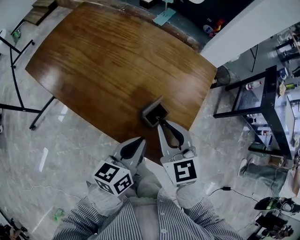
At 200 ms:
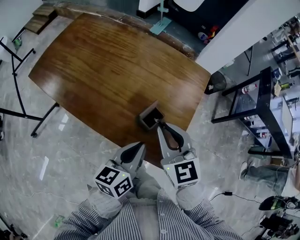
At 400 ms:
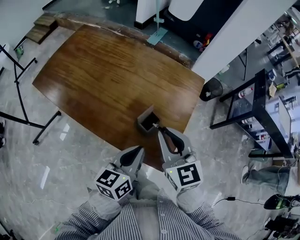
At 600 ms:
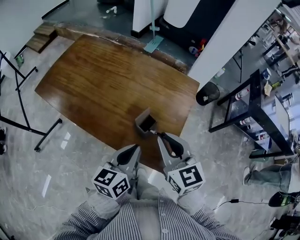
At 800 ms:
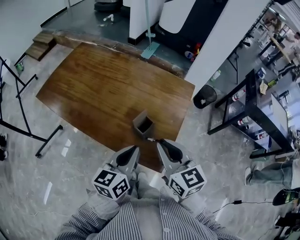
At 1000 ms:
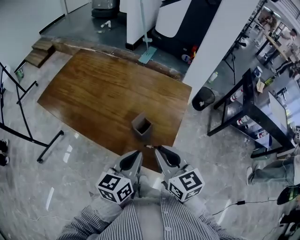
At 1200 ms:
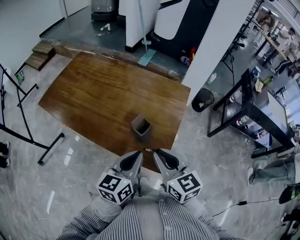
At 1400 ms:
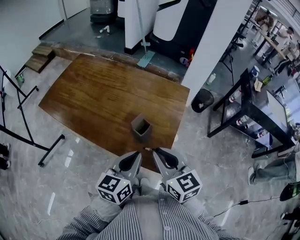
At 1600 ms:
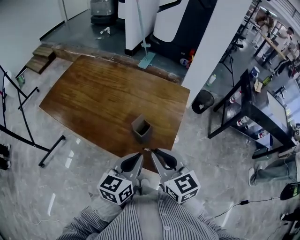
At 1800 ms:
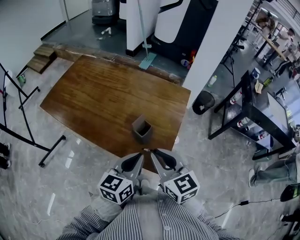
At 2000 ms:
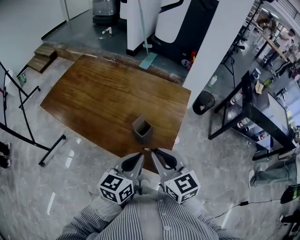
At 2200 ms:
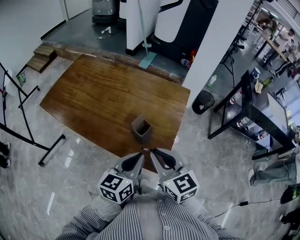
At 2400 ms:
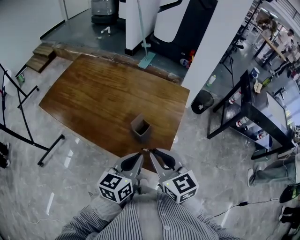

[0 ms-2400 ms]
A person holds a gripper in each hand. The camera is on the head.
0 ms to 1200 ms: The left gripper moves upward and backward, about 10 cm; the right gripper shifts approximately 15 cm backward and upward.
1200 ms to 2400 ms: Both grippers stay about where they are.

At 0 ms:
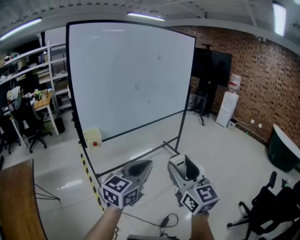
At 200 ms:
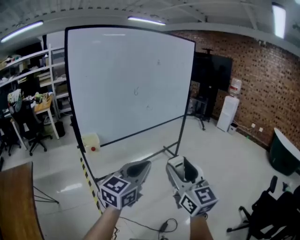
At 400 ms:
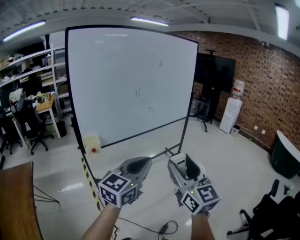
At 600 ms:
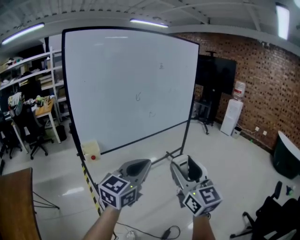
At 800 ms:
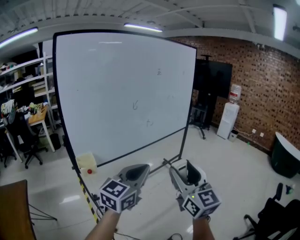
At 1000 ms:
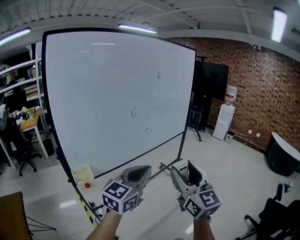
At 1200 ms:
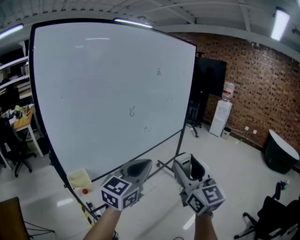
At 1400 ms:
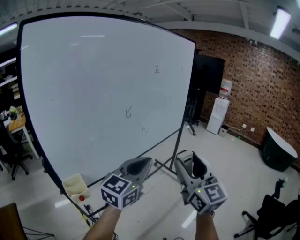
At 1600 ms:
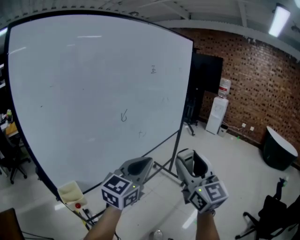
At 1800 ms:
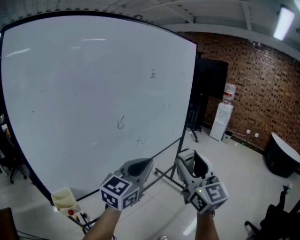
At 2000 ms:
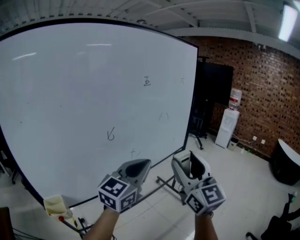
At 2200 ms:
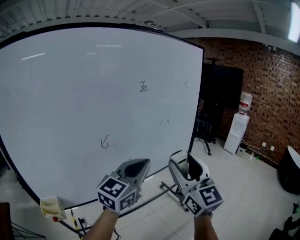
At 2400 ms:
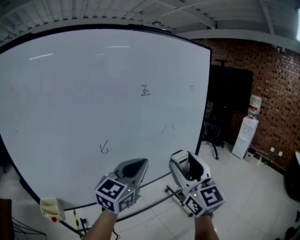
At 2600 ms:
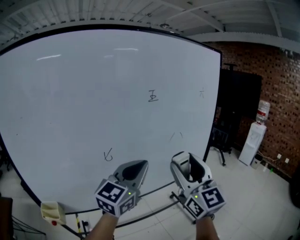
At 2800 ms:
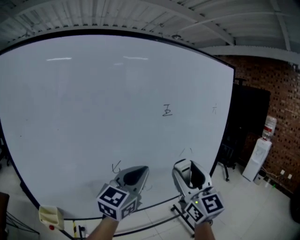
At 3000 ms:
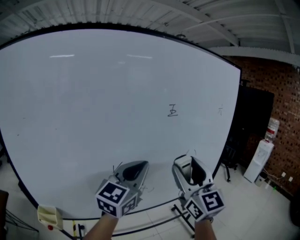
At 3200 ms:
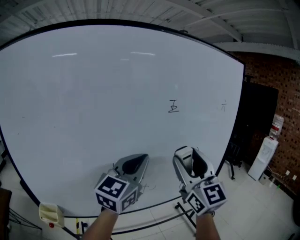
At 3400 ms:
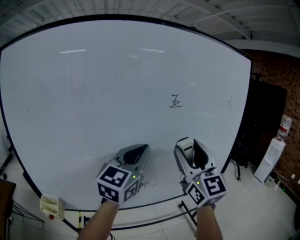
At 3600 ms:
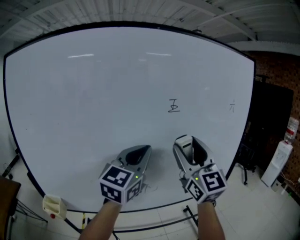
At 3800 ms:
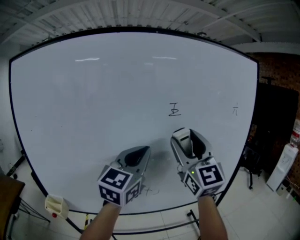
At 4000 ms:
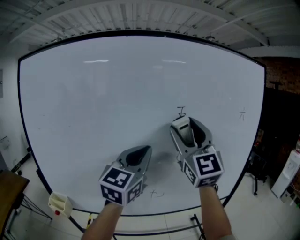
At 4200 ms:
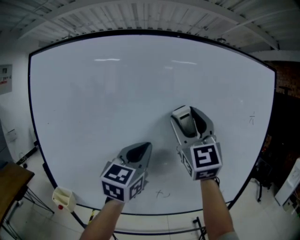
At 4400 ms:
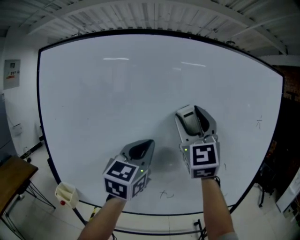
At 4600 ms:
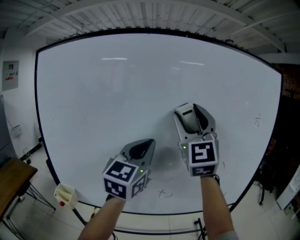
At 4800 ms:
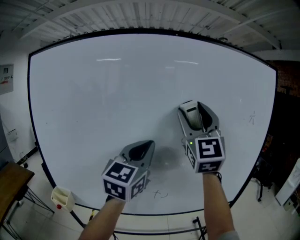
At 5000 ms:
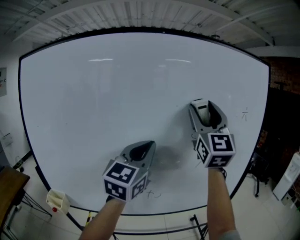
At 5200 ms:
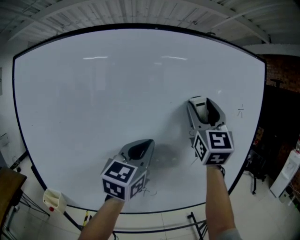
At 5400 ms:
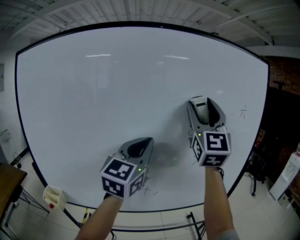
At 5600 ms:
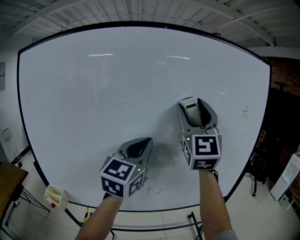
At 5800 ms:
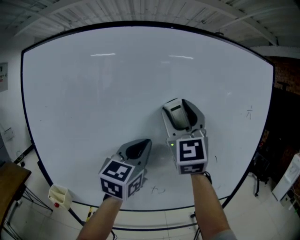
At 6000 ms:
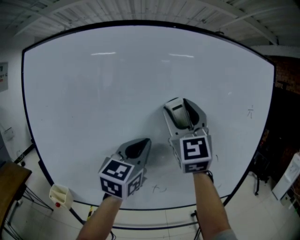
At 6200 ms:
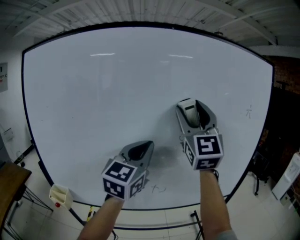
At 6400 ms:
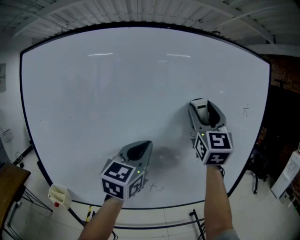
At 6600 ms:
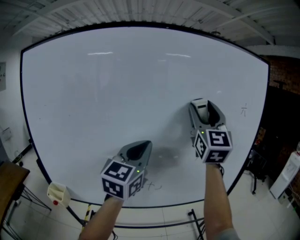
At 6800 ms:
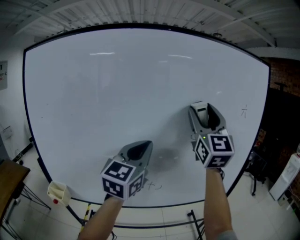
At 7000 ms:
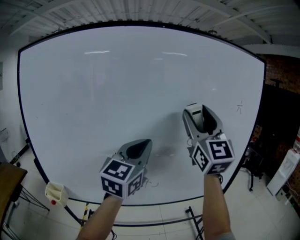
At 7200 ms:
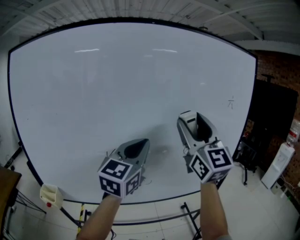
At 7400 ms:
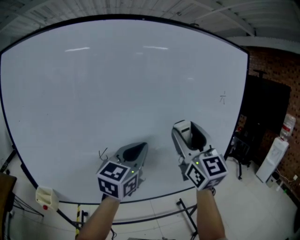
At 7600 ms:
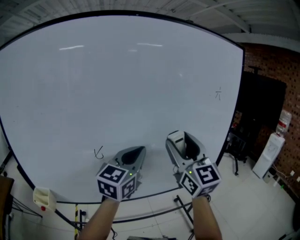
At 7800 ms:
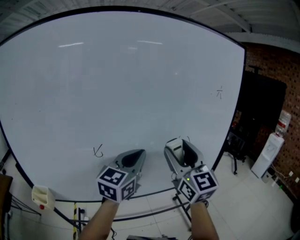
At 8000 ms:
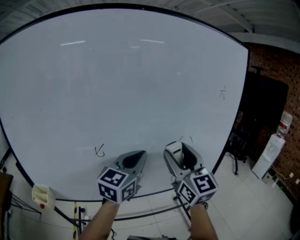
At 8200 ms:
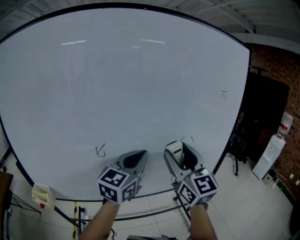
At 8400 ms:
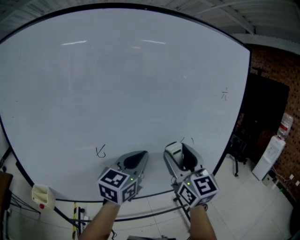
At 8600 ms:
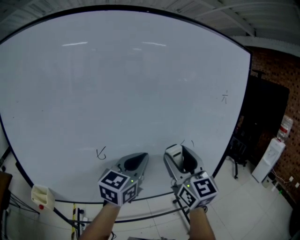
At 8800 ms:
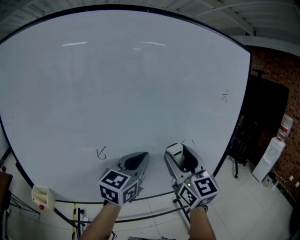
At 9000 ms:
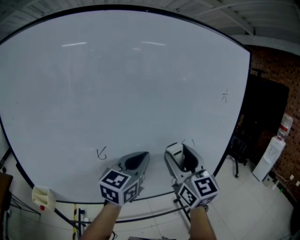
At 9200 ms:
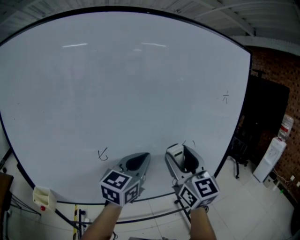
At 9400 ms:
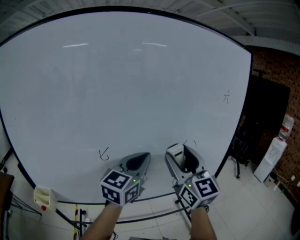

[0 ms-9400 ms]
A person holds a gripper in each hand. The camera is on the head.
0 ms to 1600 ms: Both grippers travel together forward, roughly 35 cm.
1600 ms to 3200 ms: The left gripper changes place by approximately 30 cm, and changes its angle by about 30 degrees. The right gripper moves some 30 cm, and rotates roughly 30 degrees.
3200 ms to 4800 ms: The right gripper heads upward and forward, covering approximately 15 cm. The left gripper goes approximately 5 cm upward, and swivels roughly 20 degrees.
4800 ms to 6200 ms: The right gripper swings left and right, about 15 cm each way, with 2 reversals.
6200 ms to 7800 ms: The right gripper goes roughly 20 cm downward and to the right, and changes its angle by about 20 degrees, while the left gripper travels downward and to the right by roughly 10 cm.
7800 ms to 9400 ms: The grippers move only a little.

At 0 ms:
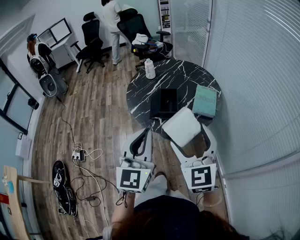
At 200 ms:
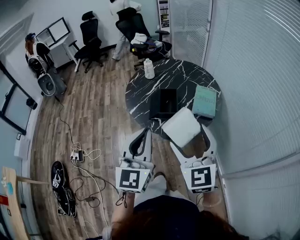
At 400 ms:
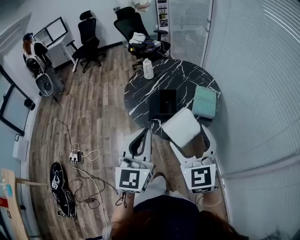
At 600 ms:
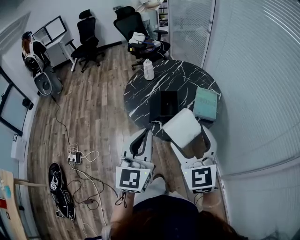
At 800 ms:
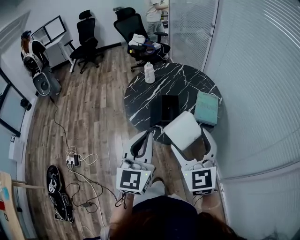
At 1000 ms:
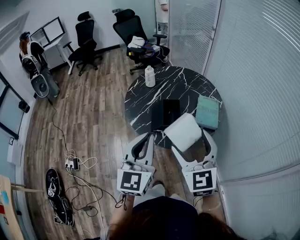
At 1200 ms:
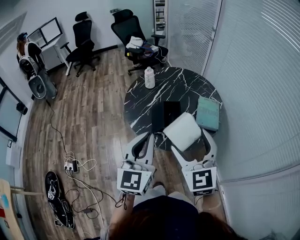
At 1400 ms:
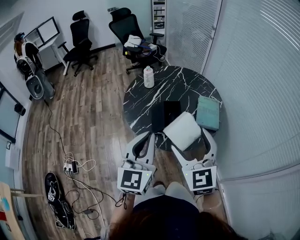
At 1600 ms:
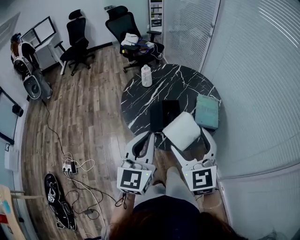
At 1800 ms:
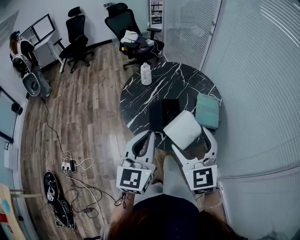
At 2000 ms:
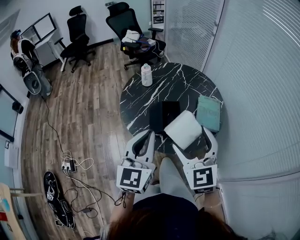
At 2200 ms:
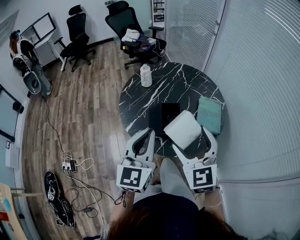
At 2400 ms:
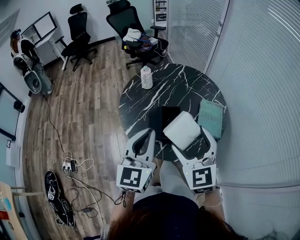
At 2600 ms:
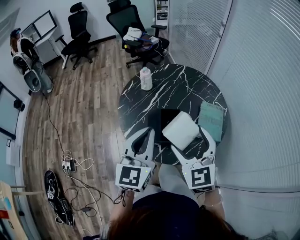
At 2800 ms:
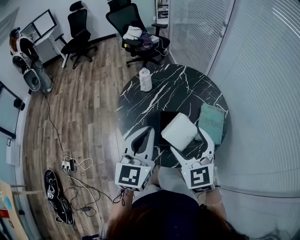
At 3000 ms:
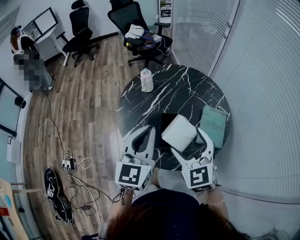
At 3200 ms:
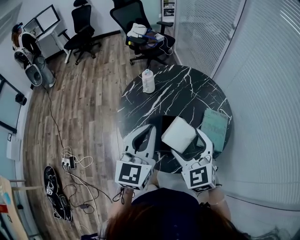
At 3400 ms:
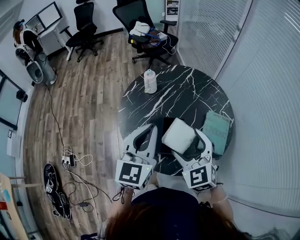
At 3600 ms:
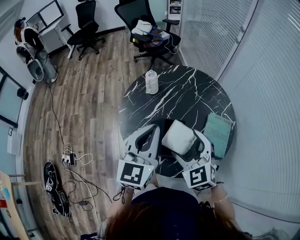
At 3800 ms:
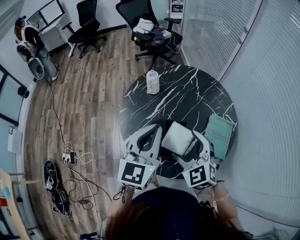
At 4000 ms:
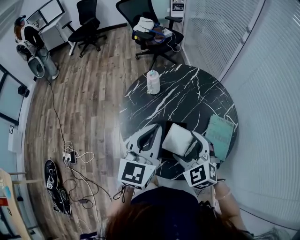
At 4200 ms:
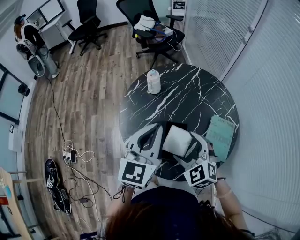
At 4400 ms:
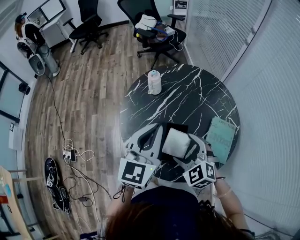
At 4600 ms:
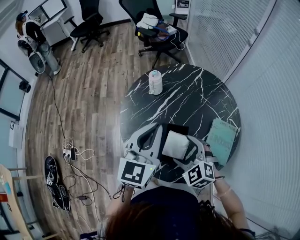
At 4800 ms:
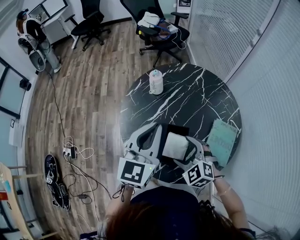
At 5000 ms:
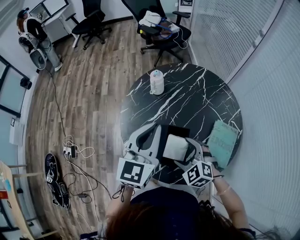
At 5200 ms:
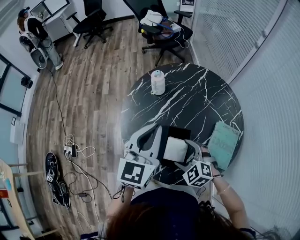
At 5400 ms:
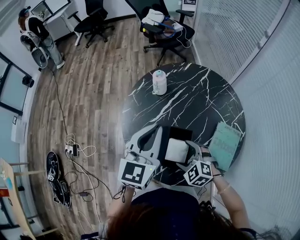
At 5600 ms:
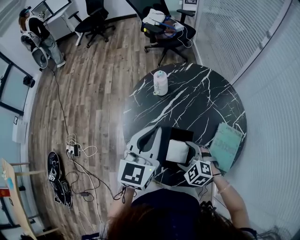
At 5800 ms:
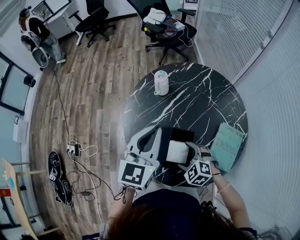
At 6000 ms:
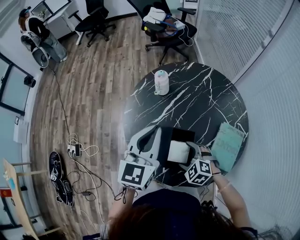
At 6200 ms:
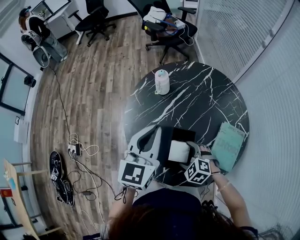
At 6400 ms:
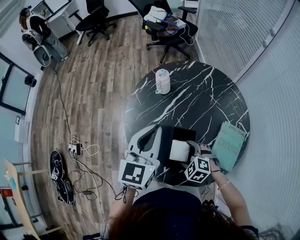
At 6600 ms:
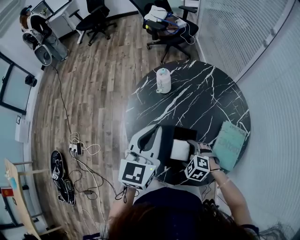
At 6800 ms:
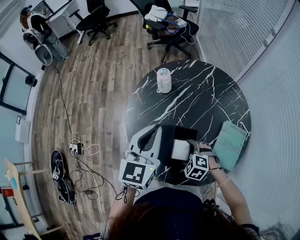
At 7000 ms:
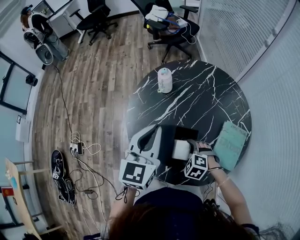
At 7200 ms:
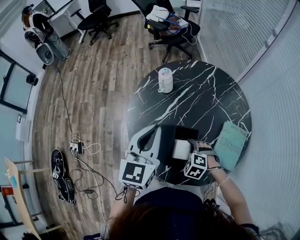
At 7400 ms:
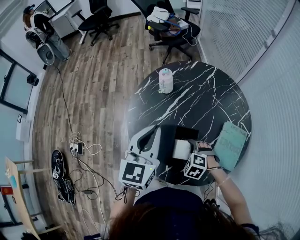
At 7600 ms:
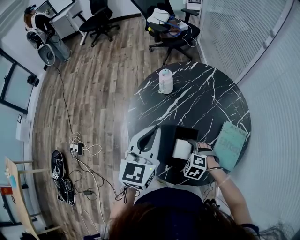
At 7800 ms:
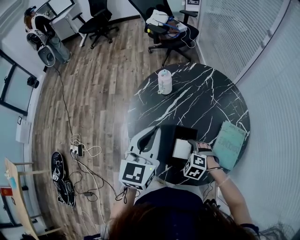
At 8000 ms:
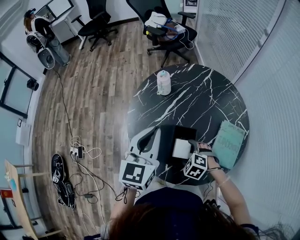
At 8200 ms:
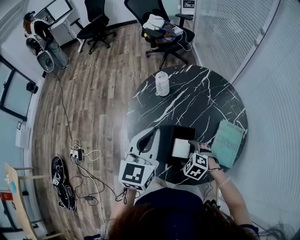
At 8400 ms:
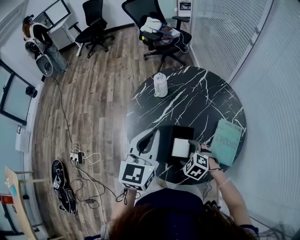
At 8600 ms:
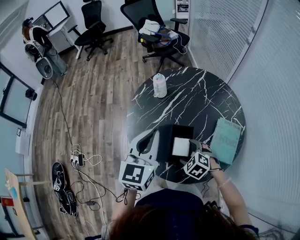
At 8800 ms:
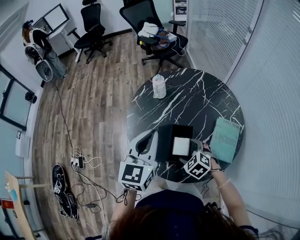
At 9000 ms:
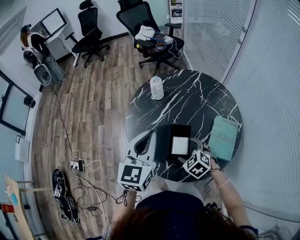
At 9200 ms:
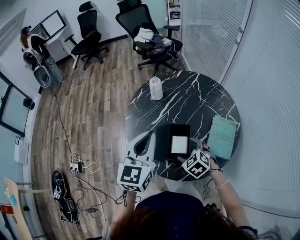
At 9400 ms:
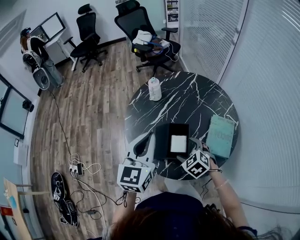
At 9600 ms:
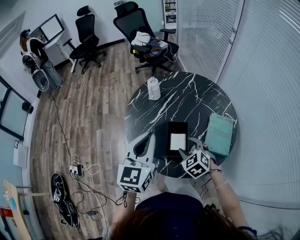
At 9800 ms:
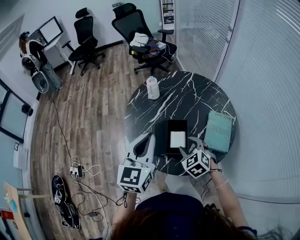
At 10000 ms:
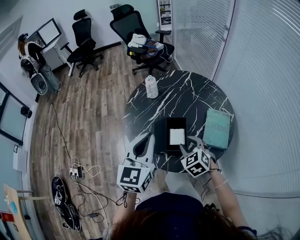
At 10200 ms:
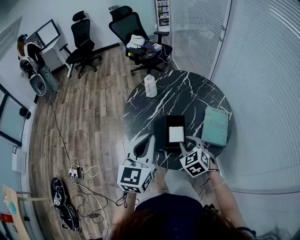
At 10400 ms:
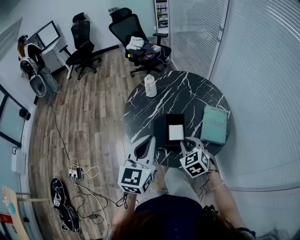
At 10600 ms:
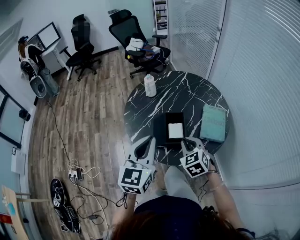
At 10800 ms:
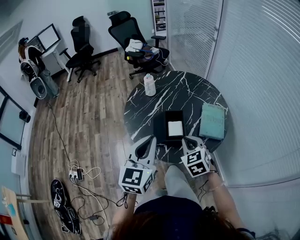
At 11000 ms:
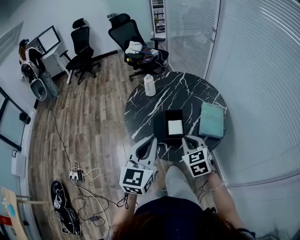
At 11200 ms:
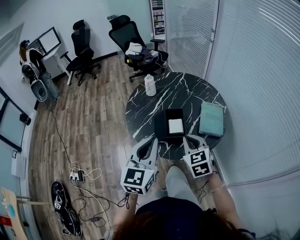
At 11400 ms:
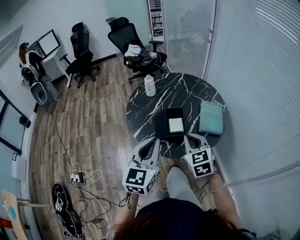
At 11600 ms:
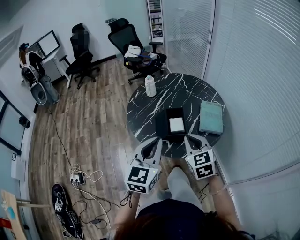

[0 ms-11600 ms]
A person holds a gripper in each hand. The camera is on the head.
0 ms to 1400 ms: The grippers both shift forward and to the left by some 10 cm.
1400 ms to 2800 ms: The grippers both shift forward by approximately 15 cm.
2800 ms to 4400 ms: The right gripper moves downward and forward, some 15 cm, and rotates approximately 30 degrees, while the left gripper goes roughly 10 cm forward.
4400 ms to 5800 ms: The left gripper moves roughly 5 cm. Meanwhile the right gripper goes roughly 10 cm downward.
5800 ms to 7200 ms: The grippers make only small movements.
7200 ms to 8800 ms: The right gripper is displaced upward by about 5 cm, and changes its angle by roughly 20 degrees, while the left gripper moves about 5 cm.
8800 ms to 10200 ms: The right gripper travels upward by roughly 10 cm, swivels some 30 degrees, and closes its fingers. The left gripper heads backward, covering some 10 cm.
10200 ms to 11600 ms: The left gripper shifts approximately 10 cm backward. Meanwhile the right gripper travels backward and upward by about 15 cm, and turns by approximately 20 degrees.
